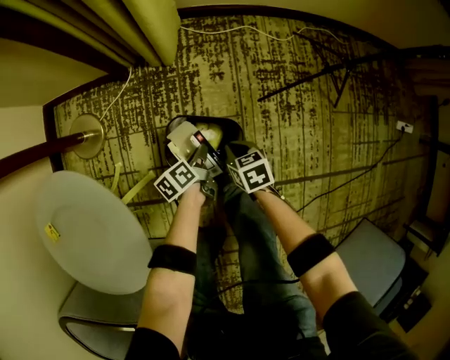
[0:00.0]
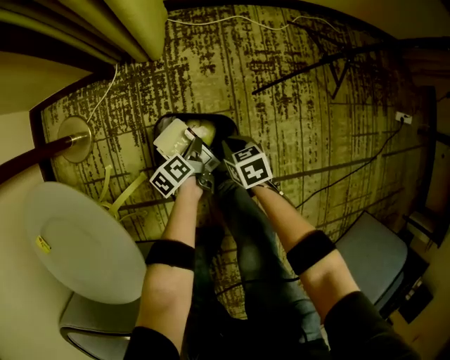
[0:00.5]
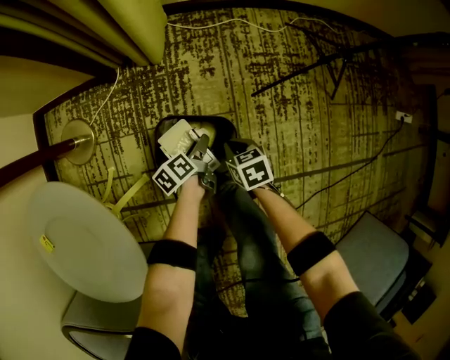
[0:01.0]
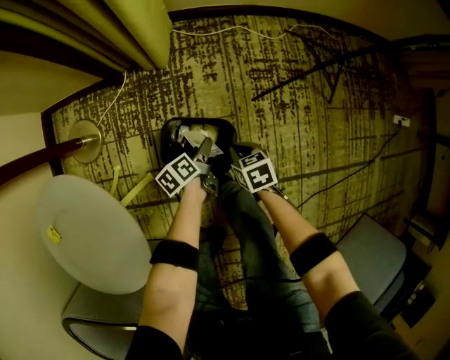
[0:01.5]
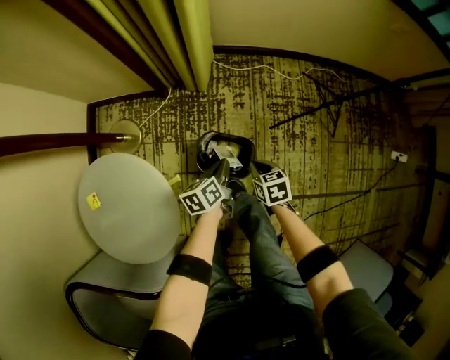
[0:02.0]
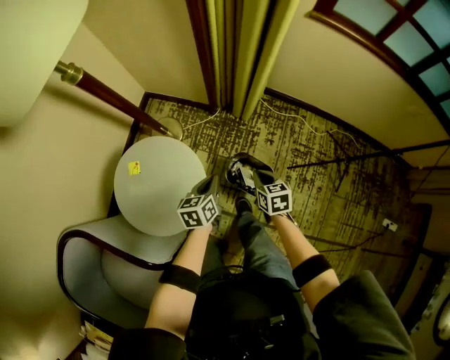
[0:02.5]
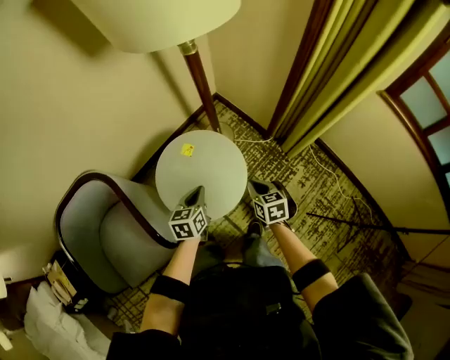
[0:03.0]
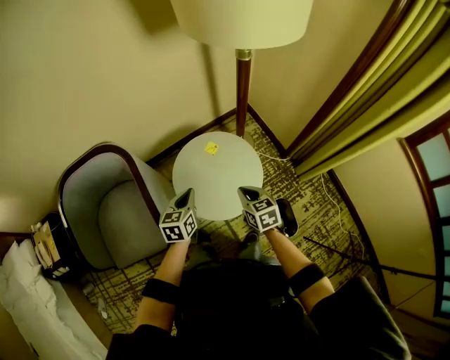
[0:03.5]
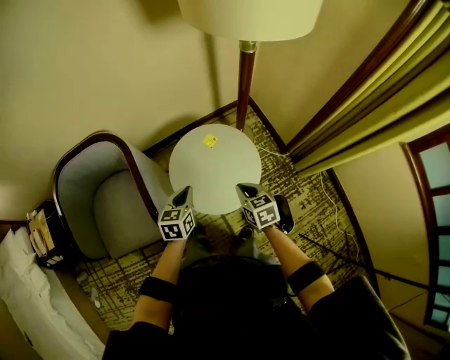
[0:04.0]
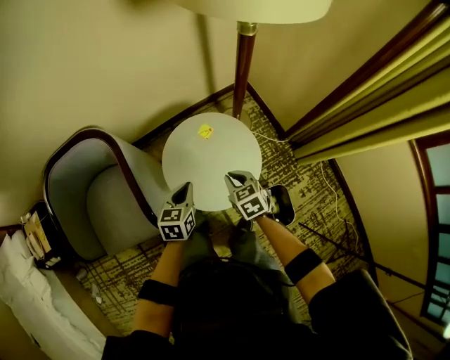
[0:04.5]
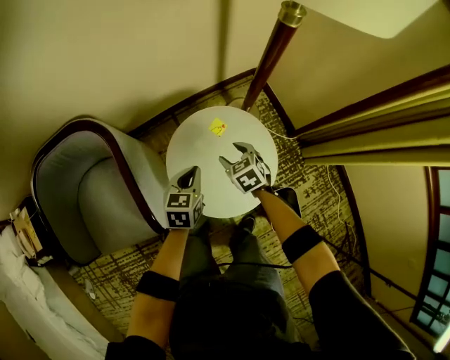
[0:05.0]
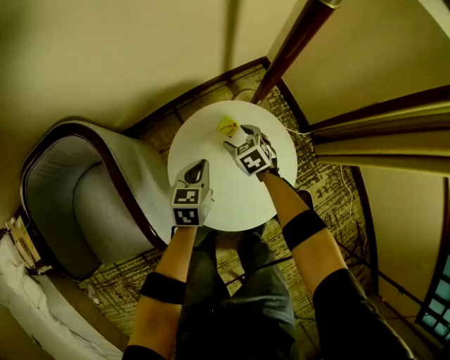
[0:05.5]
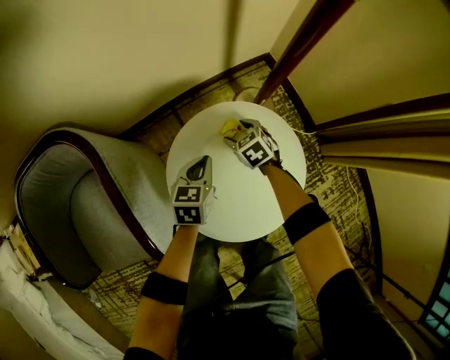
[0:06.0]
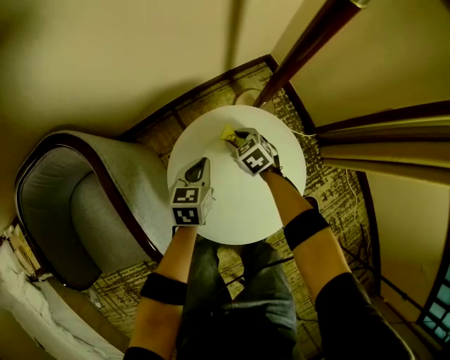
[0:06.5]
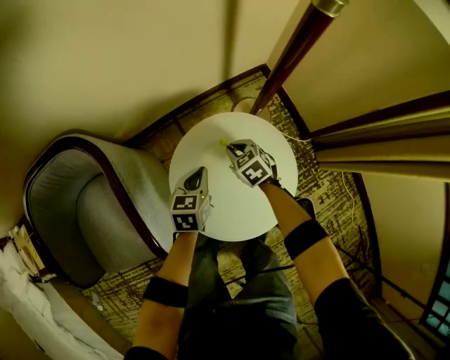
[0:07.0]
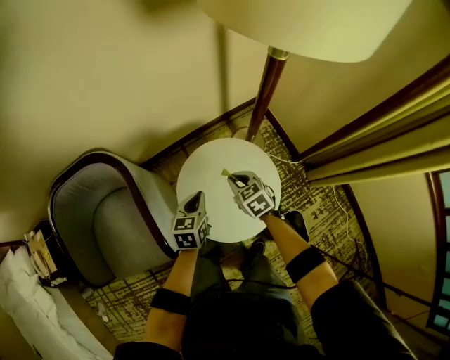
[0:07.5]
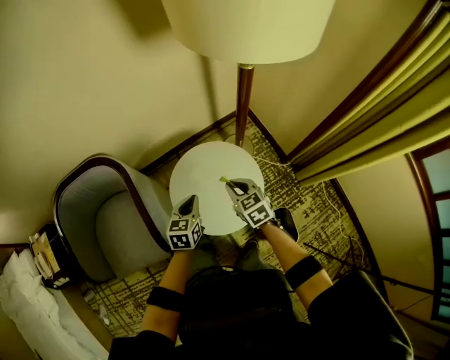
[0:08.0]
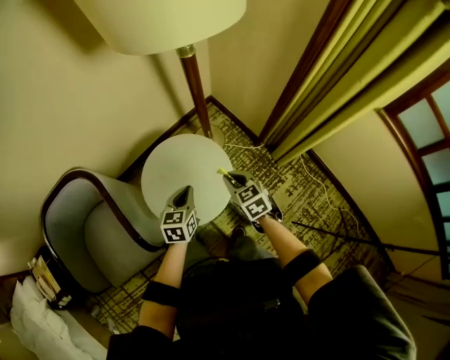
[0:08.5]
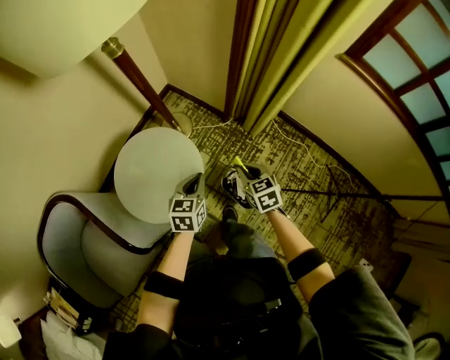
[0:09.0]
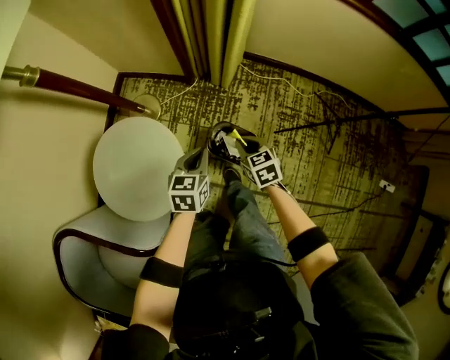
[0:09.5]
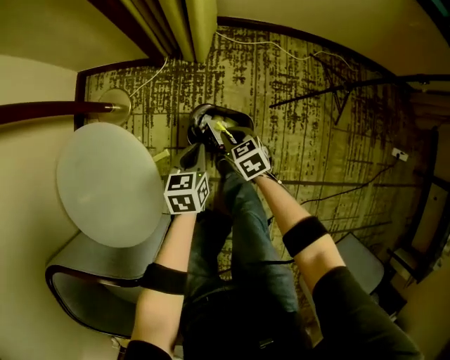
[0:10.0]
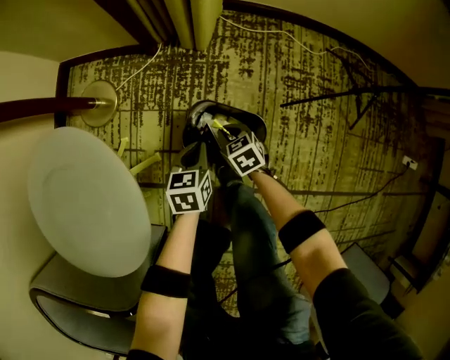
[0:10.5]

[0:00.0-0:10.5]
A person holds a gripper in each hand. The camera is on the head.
0:00.0 to 0:02.0: The grippers both shift upward by about 20 cm. The left gripper opens and closes again.
0:02.0 to 0:04.0: Both grippers are carried about 50 cm. The right gripper swivels about 70 degrees, while the left gripper turns by approximately 60 degrees.
0:04.0 to 0:06.5: The two grippers go approximately 40 cm downward and forward. The right gripper swivels approximately 20 degrees, and opens its fingers.
0:06.5 to 0:08.5: The grippers both shift upward, backward and to the right by some 40 cm. The right gripper turns by approximately 30 degrees, and closes up.
0:08.5 to 0:10.5: Both grippers move downward, some 50 cm. The right gripper swivels approximately 50 degrees. Meanwhile the left gripper swivels some 50 degrees.

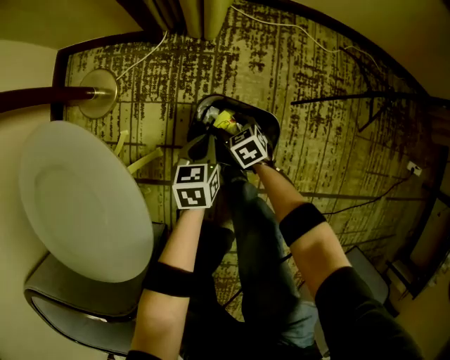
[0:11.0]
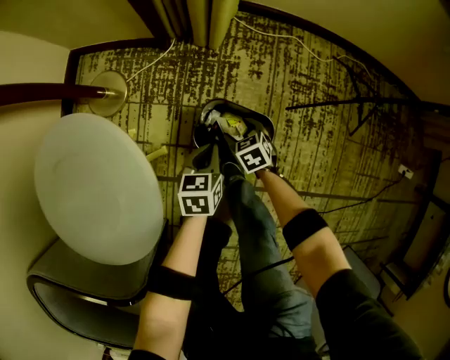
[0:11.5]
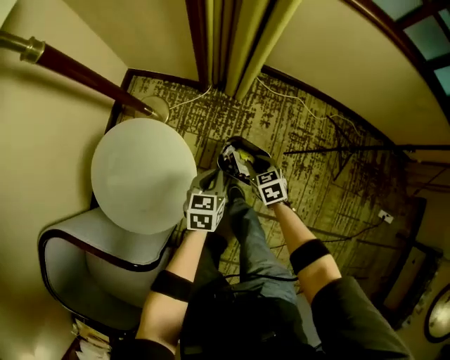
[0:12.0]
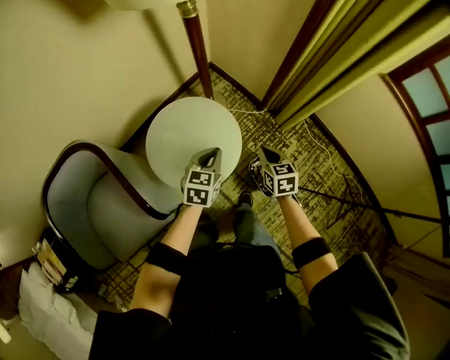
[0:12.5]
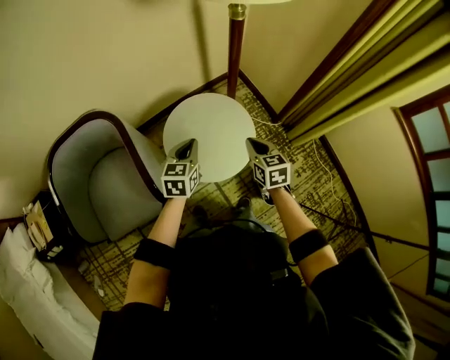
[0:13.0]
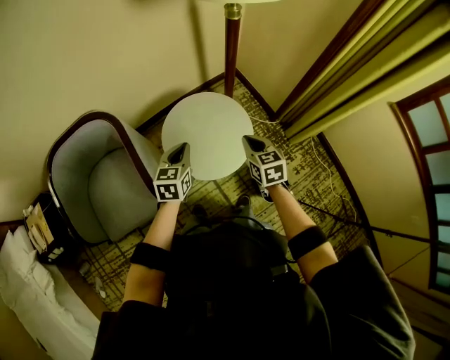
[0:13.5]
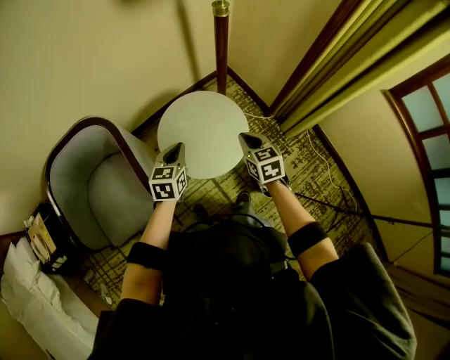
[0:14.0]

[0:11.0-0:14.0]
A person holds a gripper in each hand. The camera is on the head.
0:11.0 to 0:12.5: Both grippers move upward, about 60 cm. The left gripper turns by about 30 degrees. Meanwhile the right gripper turns by about 30 degrees, and closes up.
0:12.5 to 0:14.0: The left gripper heads to the left, covering roughly 20 cm, and swivels some 20 degrees; the right gripper is displaced to the left and upward by about 15 cm.

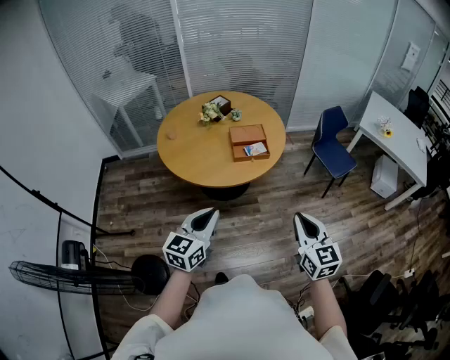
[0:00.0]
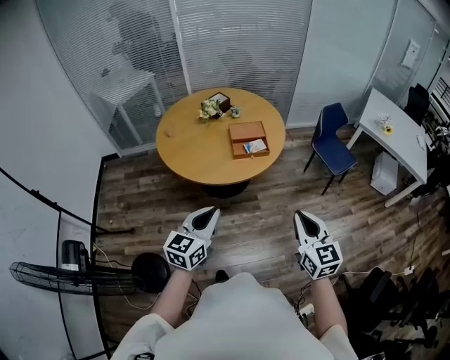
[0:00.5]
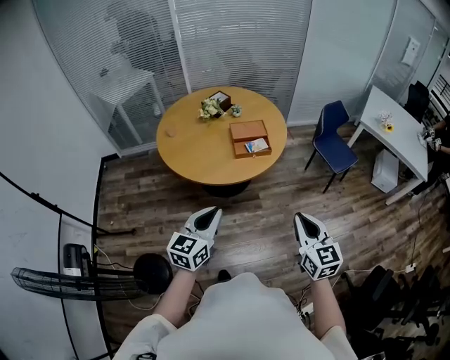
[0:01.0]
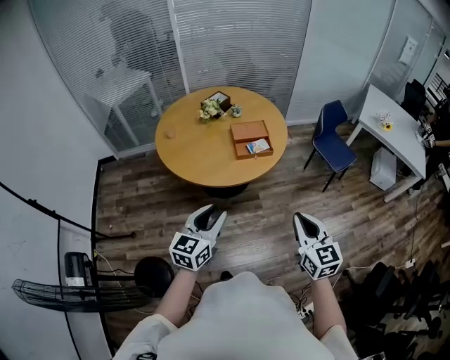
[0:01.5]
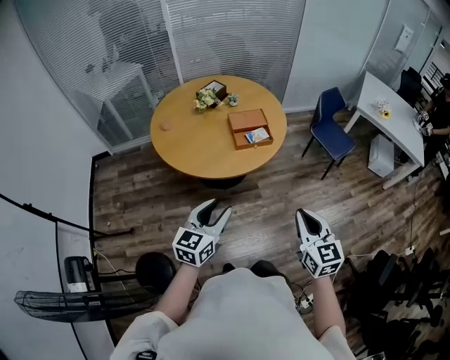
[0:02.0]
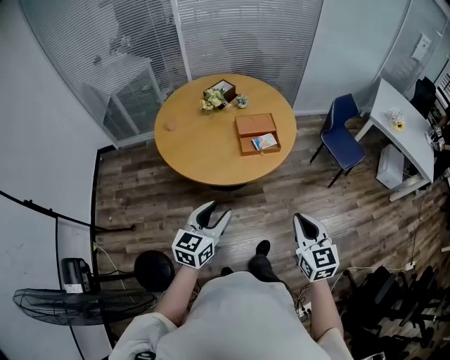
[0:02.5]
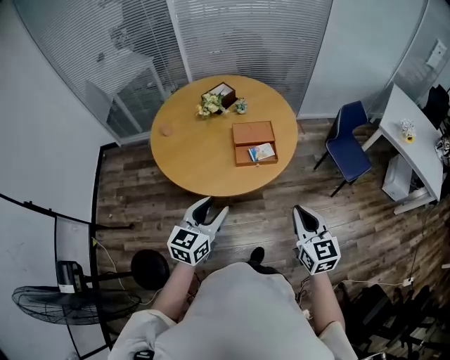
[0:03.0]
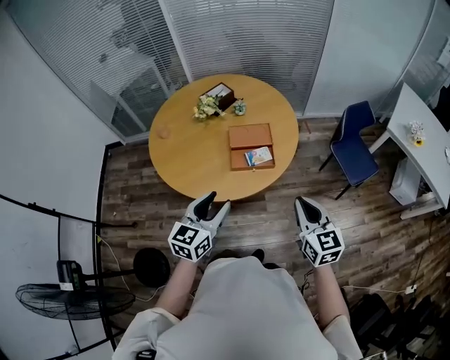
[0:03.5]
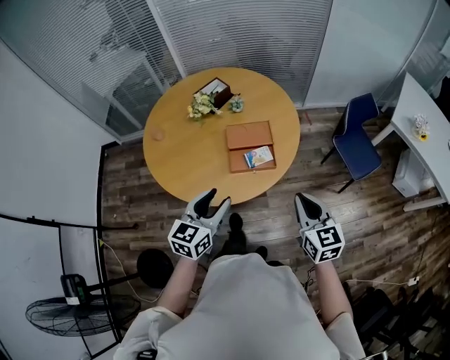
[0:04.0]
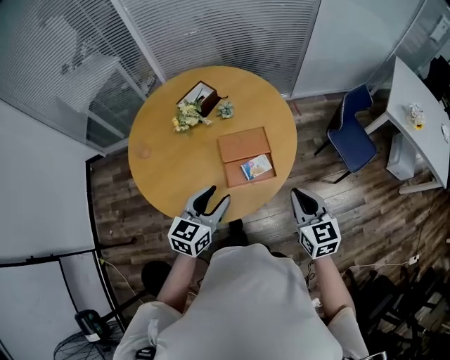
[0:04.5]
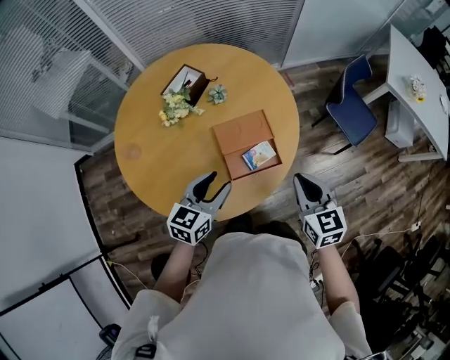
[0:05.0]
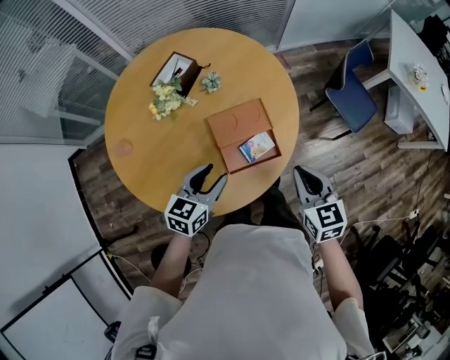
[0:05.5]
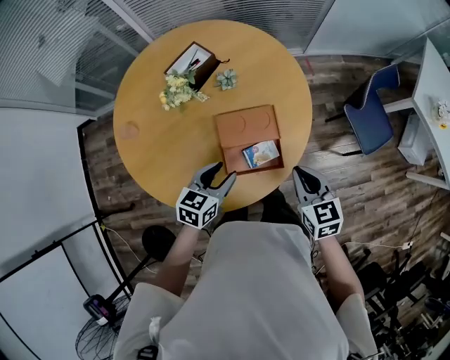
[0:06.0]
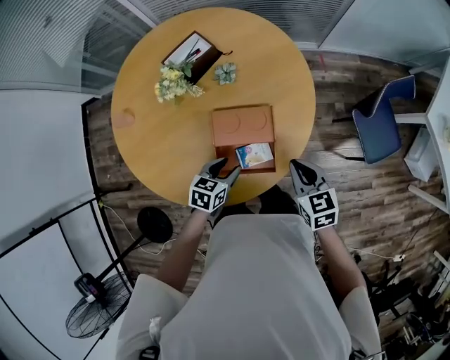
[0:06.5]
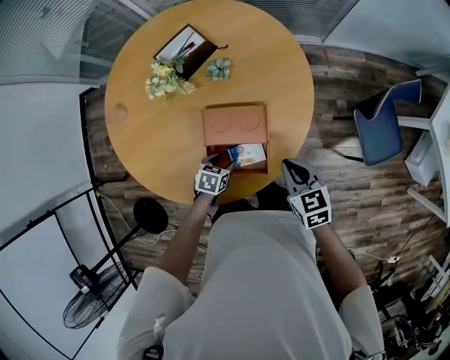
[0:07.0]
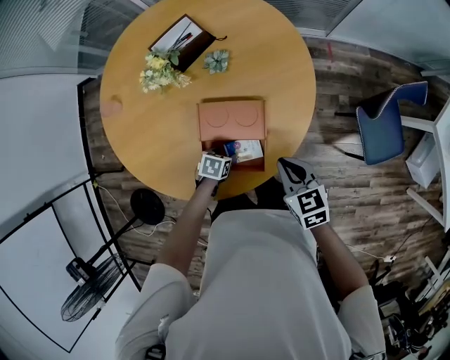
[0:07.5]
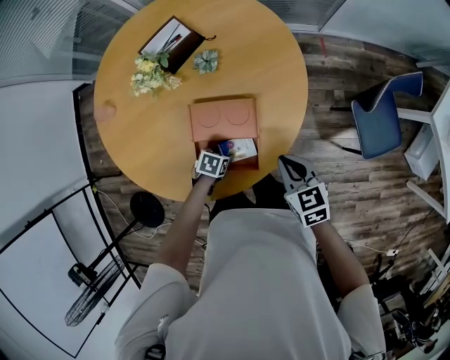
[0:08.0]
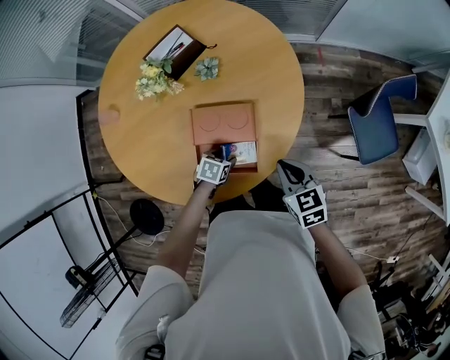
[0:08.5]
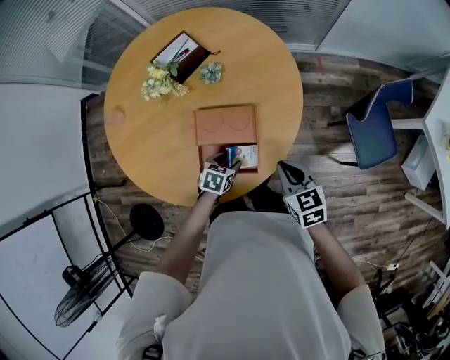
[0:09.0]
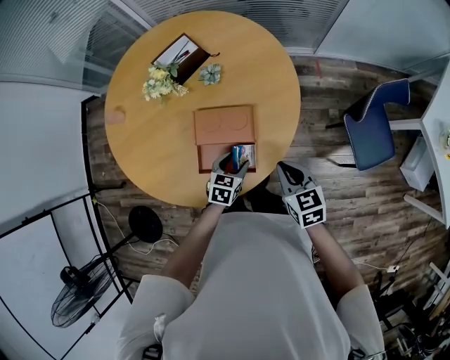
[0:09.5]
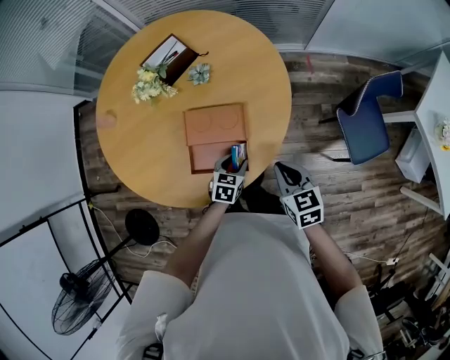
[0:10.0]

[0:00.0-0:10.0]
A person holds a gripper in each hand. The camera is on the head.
0:00.0 to 0:02.0: The right gripper heads to the left, covering roughly 5 cm. Meanwhile the left gripper shifts by some 10 cm, and opens up.
0:02.0 to 0:04.0: The grippers both shift forward by about 30 cm.
0:04.0 to 0:06.0: The grippers both shift forward and downward by some 30 cm. The left gripper rotates about 20 degrees.
0:06.0 to 0:08.0: The left gripper travels downward by about 25 cm, and angles its fingers downward, by roughly 40 degrees, while the right gripper heads downward, forward and to the right, covering roughly 15 cm.
0:08.0 to 0:10.0: The left gripper goes some 15 cm to the right and upward, and turns by some 30 degrees, while the right gripper ends up some 5 cm from where it was.

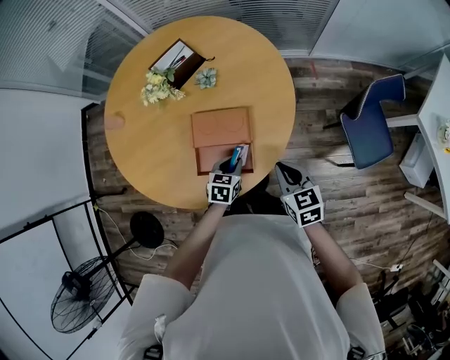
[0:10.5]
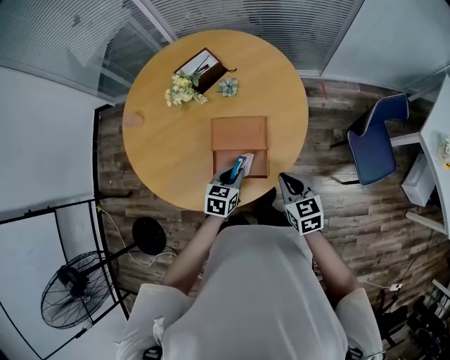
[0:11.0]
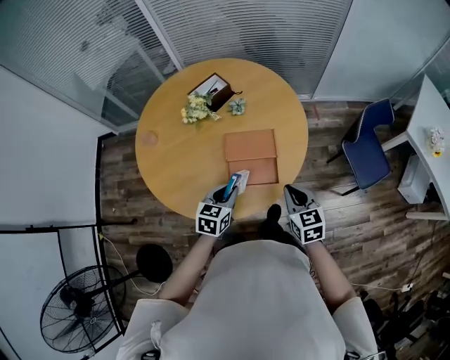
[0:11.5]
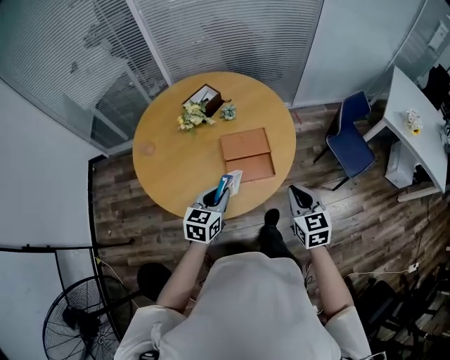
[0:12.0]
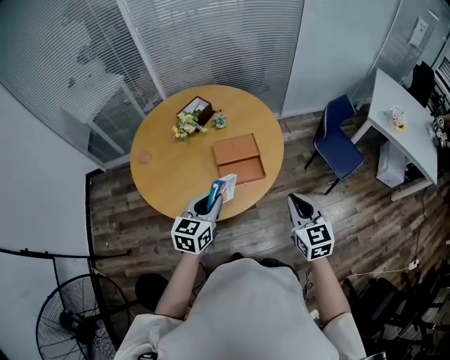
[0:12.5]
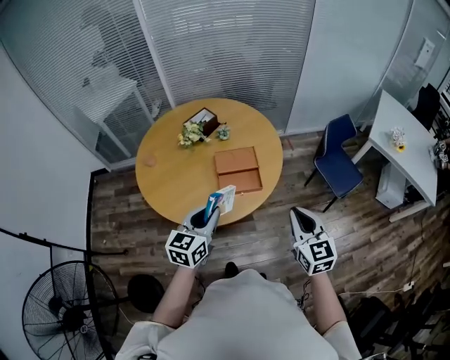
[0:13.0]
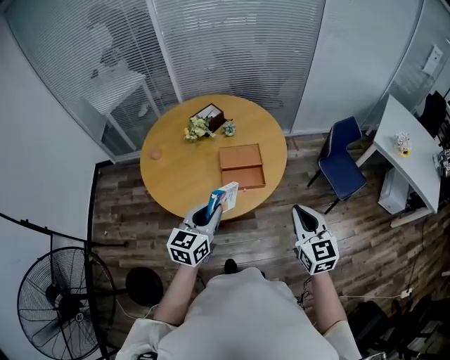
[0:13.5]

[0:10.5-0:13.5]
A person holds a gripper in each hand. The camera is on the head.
0:10.5 to 0:12.0: The right gripper shifts approximately 25 cm backward, upward and to the left, and rotates approximately 20 degrees. Meanwhile the left gripper shifts about 35 cm upward, to the left and backward, and swivels approximately 30 degrees.
0:12.0 to 0:13.5: The right gripper moves backward, upward and to the right, approximately 20 cm. The left gripper goes approximately 20 cm backward and upward.
